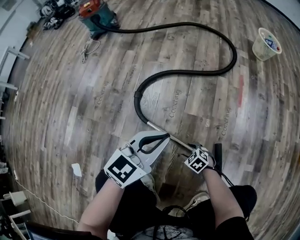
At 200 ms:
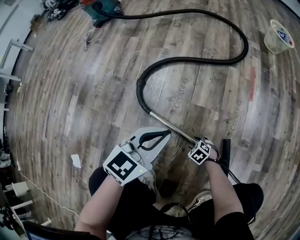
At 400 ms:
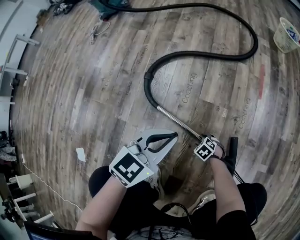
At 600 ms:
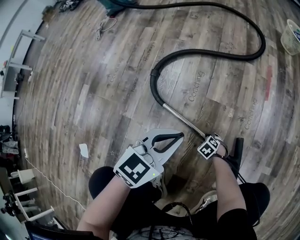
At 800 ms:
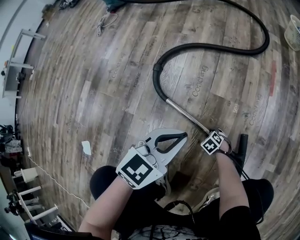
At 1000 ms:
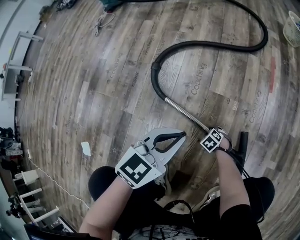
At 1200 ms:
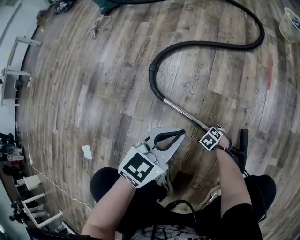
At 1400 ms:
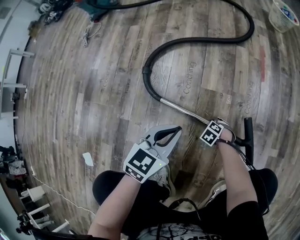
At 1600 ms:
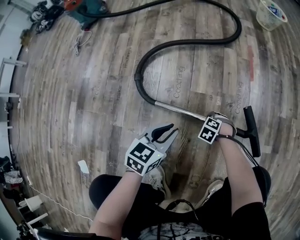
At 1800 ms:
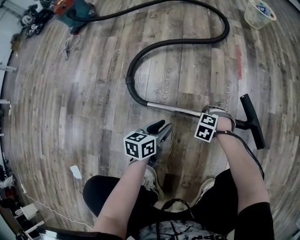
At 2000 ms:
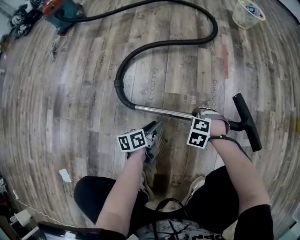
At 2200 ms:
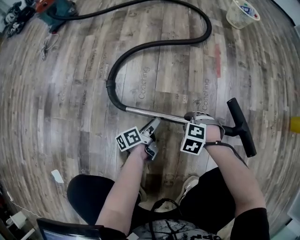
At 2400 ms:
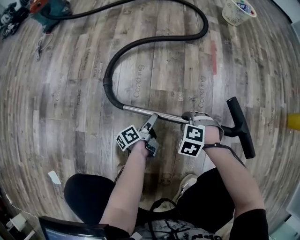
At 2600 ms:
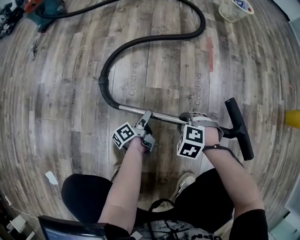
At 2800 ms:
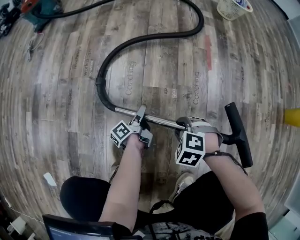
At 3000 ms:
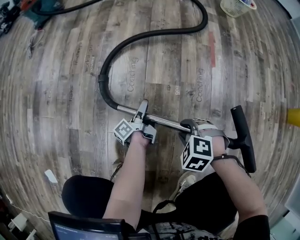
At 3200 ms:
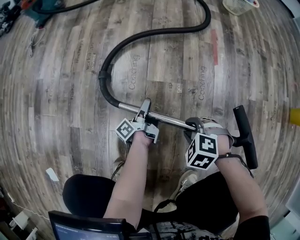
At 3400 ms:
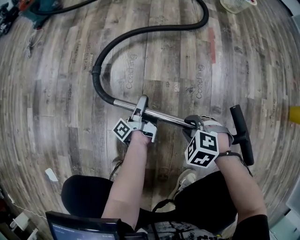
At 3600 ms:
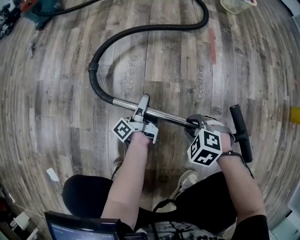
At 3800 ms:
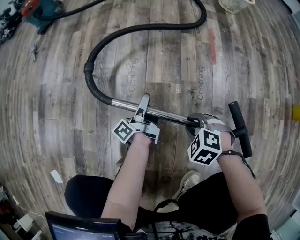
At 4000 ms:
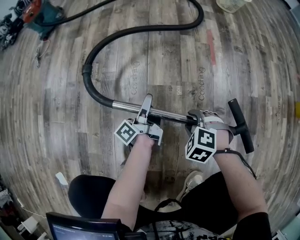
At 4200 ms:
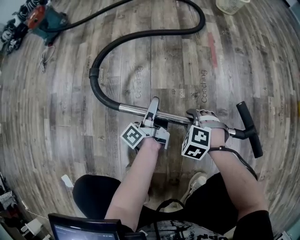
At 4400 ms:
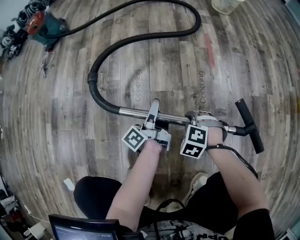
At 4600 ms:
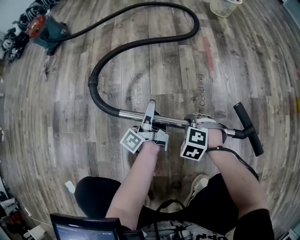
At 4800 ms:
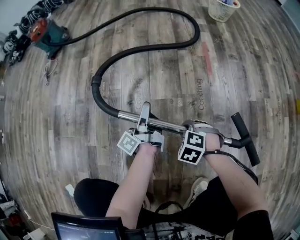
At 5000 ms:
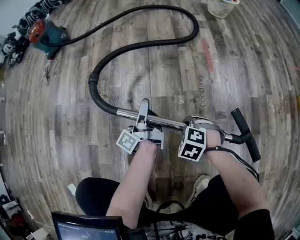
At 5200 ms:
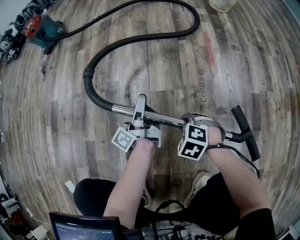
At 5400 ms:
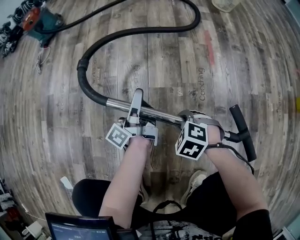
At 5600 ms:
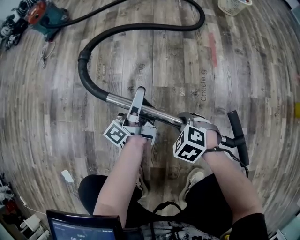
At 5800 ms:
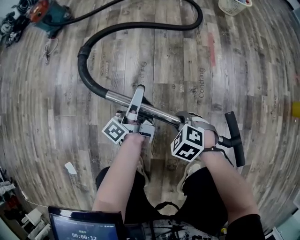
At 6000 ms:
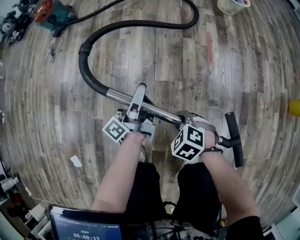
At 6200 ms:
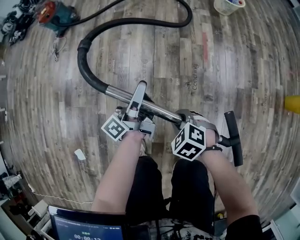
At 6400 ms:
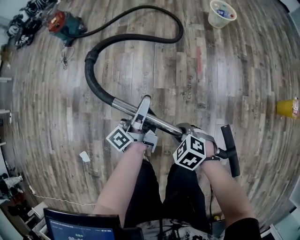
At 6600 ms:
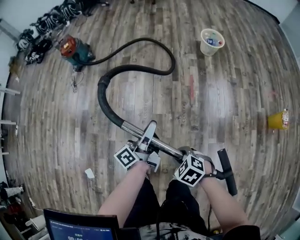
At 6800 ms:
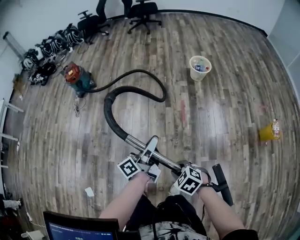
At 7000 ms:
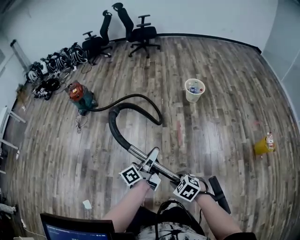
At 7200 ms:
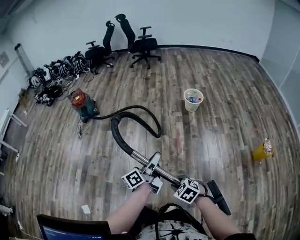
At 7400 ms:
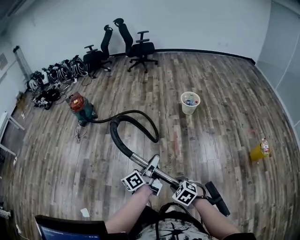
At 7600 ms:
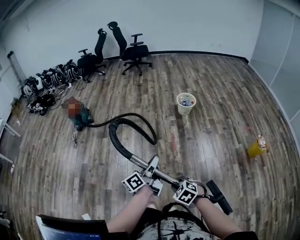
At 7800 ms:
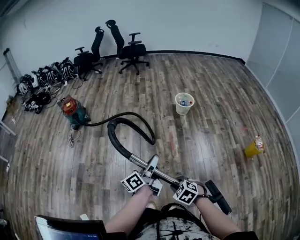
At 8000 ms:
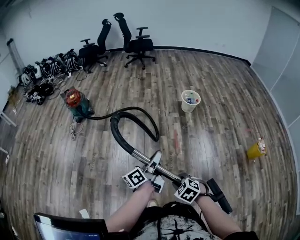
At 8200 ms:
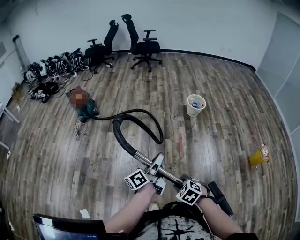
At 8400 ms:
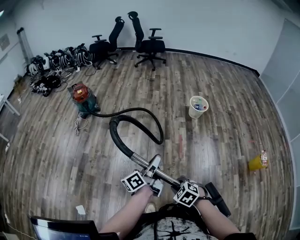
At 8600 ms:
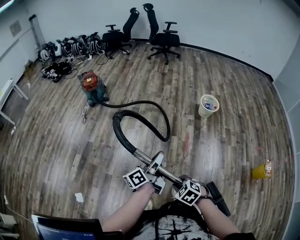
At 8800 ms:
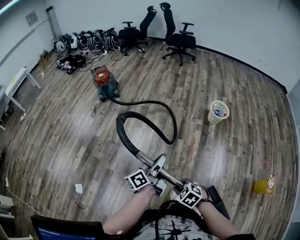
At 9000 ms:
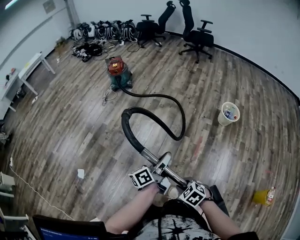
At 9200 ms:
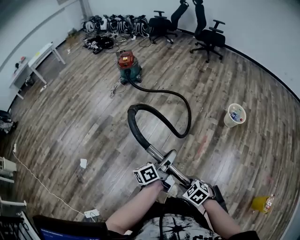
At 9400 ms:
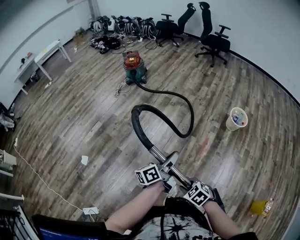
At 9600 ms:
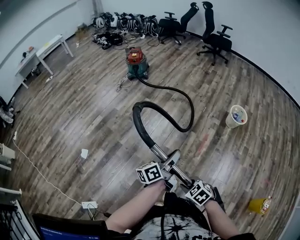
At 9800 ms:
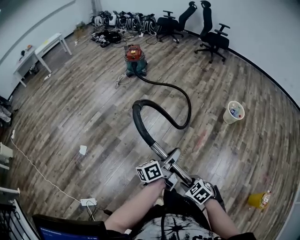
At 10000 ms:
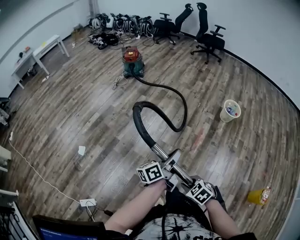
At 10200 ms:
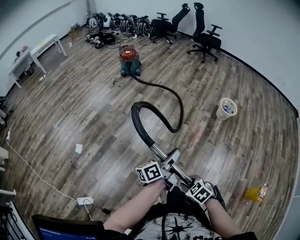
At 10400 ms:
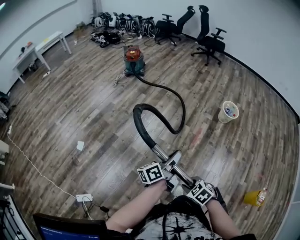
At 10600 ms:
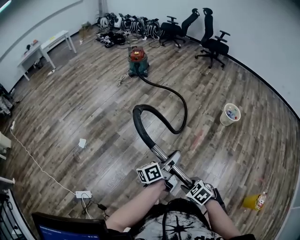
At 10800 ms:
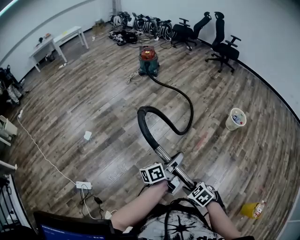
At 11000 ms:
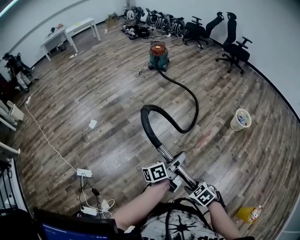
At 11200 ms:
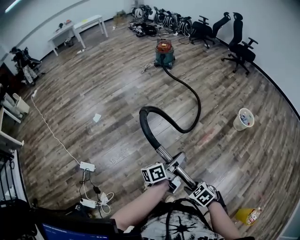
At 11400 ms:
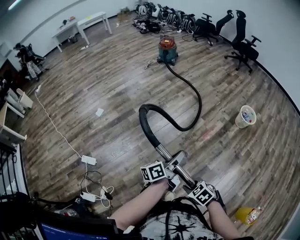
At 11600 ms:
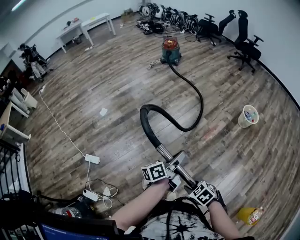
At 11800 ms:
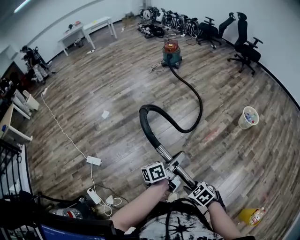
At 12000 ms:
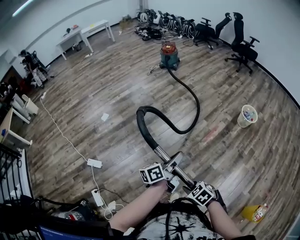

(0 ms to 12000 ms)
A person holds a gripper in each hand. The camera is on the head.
0 ms - 1600 ms: The right gripper heads downward, covering approximately 10 cm, swivels some 30 degrees, and closes its fingers, while the left gripper heads downward, covering roughly 20 cm, and rotates some 20 degrees.
1600 ms - 3000 ms: The left gripper moves downward, some 15 cm, rotates around the line of its fingers by approximately 80 degrees, counterclockwise from behind, and opens, while the right gripper travels upward by roughly 15 cm.
3000 ms - 4400 ms: The left gripper shifts approximately 15 cm upward, and closes.
4400 ms - 6000 ms: Both grippers move upward, some 20 cm.
6000 ms - 7600 ms: Both grippers travel together upward, approximately 40 cm. The left gripper turns by approximately 20 degrees.
7600 ms - 9000 ms: The left gripper shifts by approximately 10 cm, and rotates about 20 degrees, while the right gripper changes place by approximately 10 cm, and rotates roughly 20 degrees.
9000 ms - 10400 ms: The grippers both shift backward by roughly 20 cm.
10400 ms - 12000 ms: Both grippers travel together backward, roughly 25 cm.

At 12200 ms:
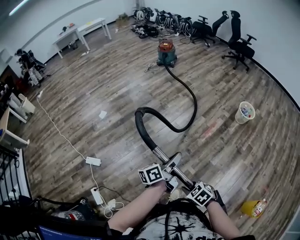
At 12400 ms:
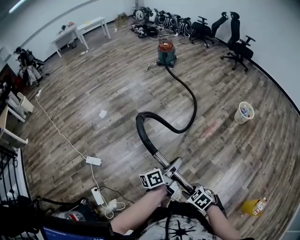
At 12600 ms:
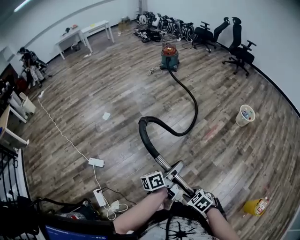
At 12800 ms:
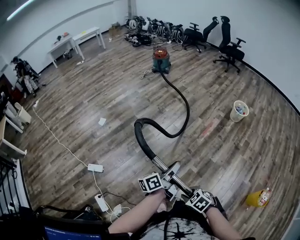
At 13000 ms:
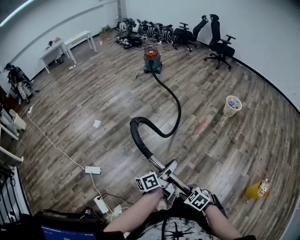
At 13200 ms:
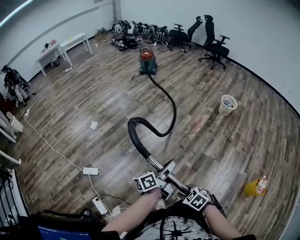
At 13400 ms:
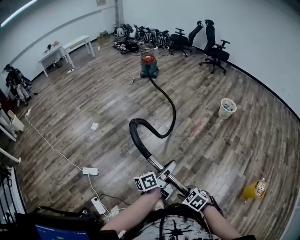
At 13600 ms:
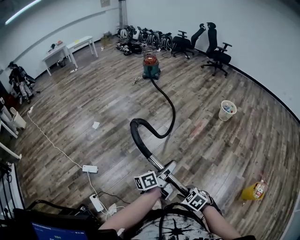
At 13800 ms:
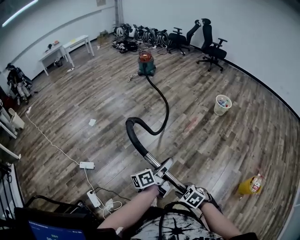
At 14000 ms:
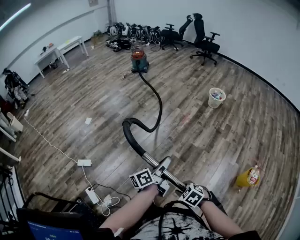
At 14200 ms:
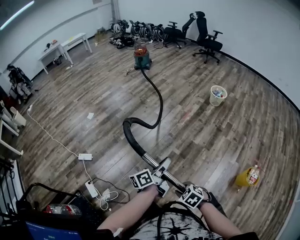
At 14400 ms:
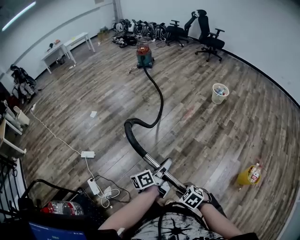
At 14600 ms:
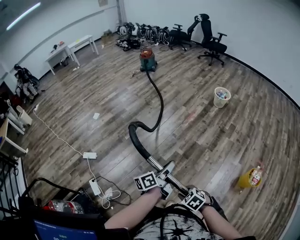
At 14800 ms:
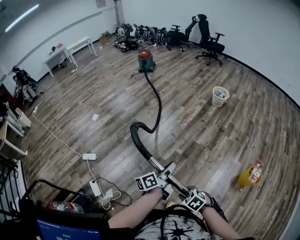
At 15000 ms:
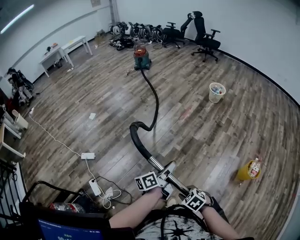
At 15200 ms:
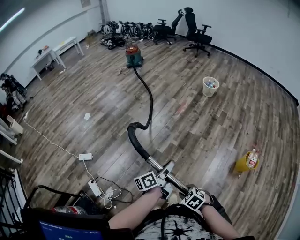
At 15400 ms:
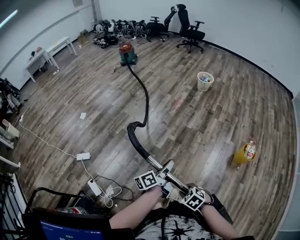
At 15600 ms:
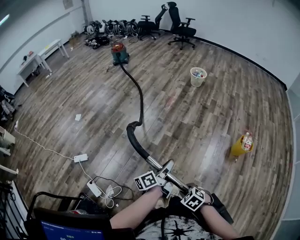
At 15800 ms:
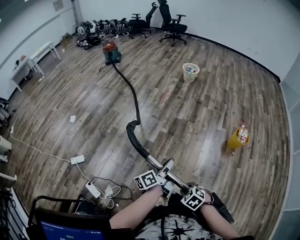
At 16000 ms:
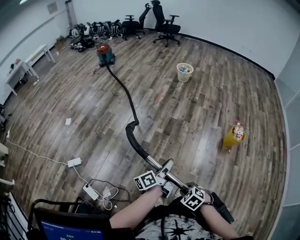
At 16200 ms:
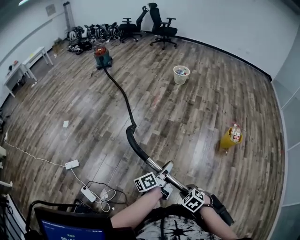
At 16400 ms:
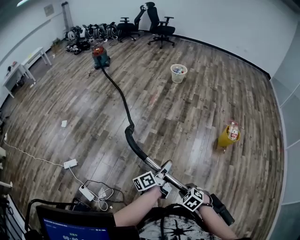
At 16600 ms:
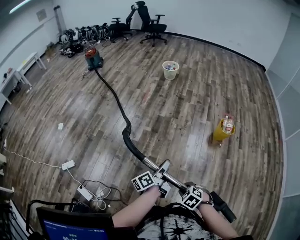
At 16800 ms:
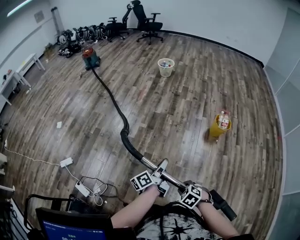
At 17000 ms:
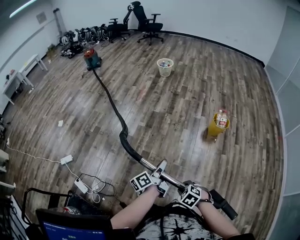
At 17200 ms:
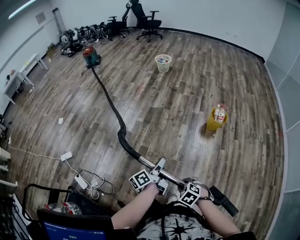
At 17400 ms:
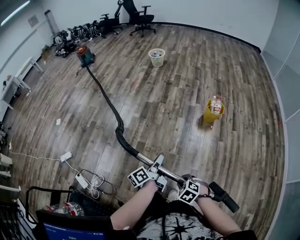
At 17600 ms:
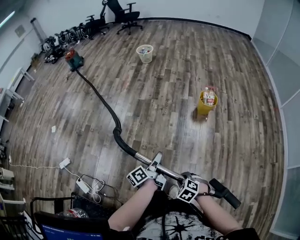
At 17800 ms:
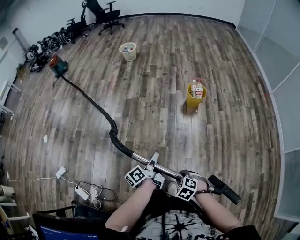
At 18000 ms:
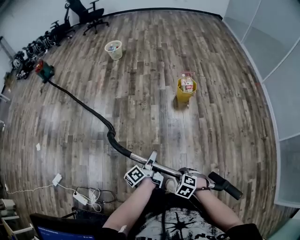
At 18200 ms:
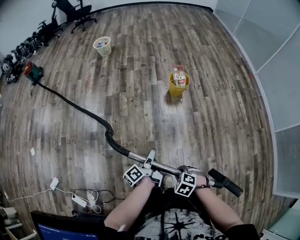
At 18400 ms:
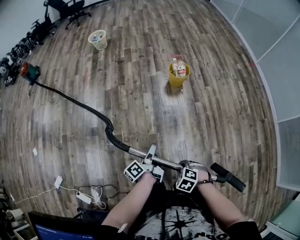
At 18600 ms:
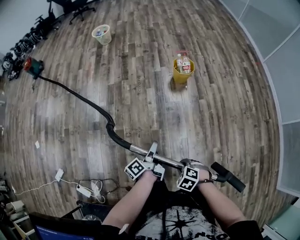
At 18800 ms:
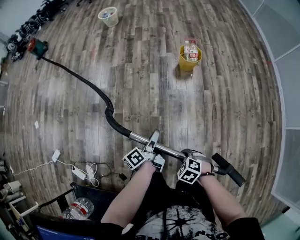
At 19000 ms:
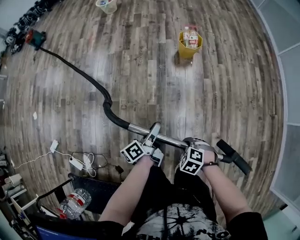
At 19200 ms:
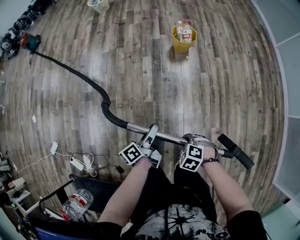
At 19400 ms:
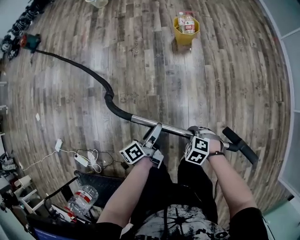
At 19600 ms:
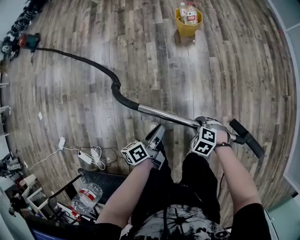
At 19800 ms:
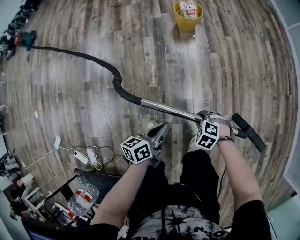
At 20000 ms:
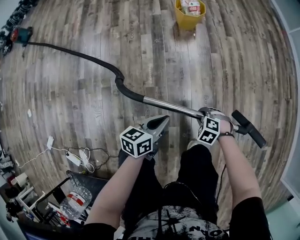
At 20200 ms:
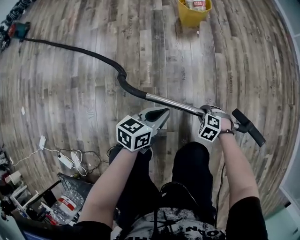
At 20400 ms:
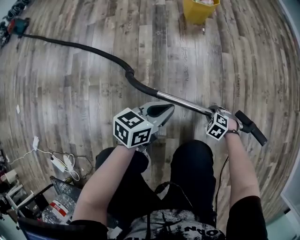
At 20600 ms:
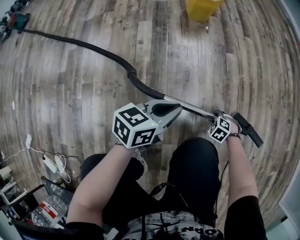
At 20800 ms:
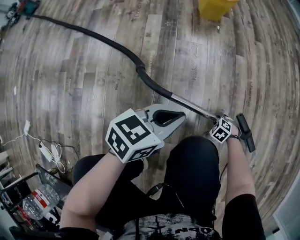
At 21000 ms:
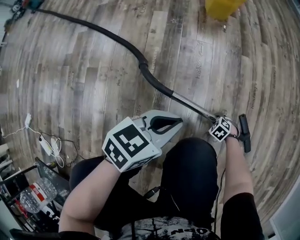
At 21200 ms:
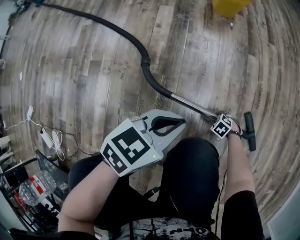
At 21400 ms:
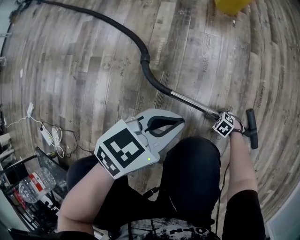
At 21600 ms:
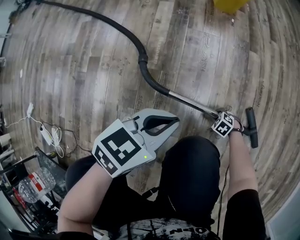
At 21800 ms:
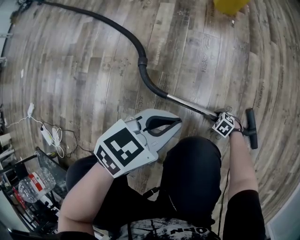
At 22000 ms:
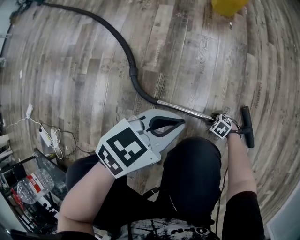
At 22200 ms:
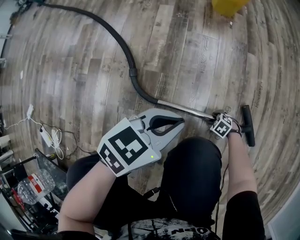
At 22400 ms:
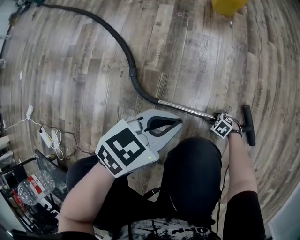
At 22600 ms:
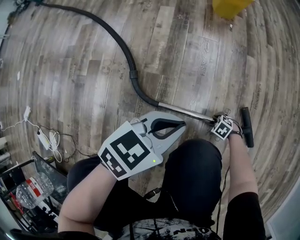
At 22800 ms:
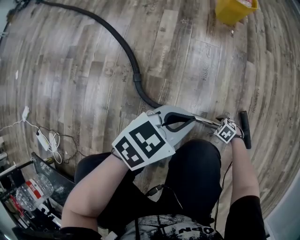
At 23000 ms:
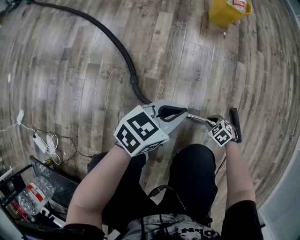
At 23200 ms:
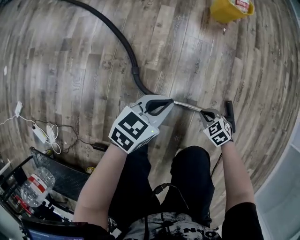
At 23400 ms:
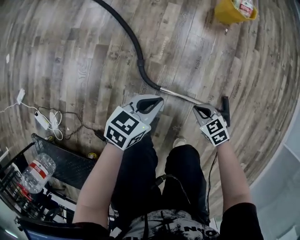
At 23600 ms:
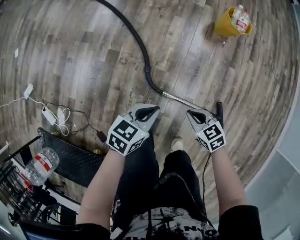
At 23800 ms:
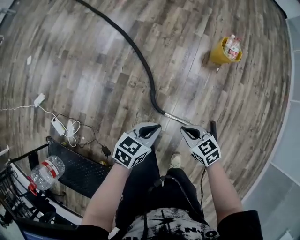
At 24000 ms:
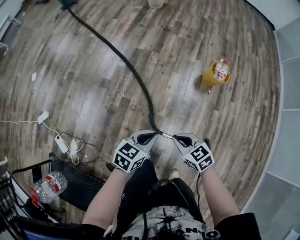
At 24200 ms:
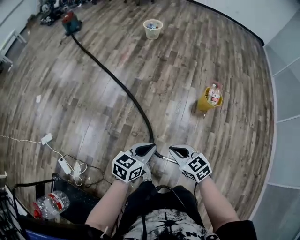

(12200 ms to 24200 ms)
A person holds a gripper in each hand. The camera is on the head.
12200 ms - 13800 ms: The two grippers go roughly 25 cm backward.
13800 ms - 15200 ms: Both grippers travel together backward, approximately 20 cm.
15200 ms - 16600 ms: Both grippers travel together backward and to the right, approximately 20 cm.
16600 ms - 18200 ms: The right gripper moves about 25 cm; the left gripper shifts by approximately 25 cm.
18200 ms - 19800 ms: The two grippers go about 20 cm downward. The left gripper changes its angle by about 40 degrees, and opens, then closes once more.
19800 ms - 21200 ms: The right gripper moves downward, some 50 cm. The left gripper travels downward by roughly 20 cm, and turns by roughly 40 degrees.
21200 ms - 22600 ms: The right gripper opens its fingers.
22600 ms - 24200 ms: The left gripper heads upward, covering roughly 50 cm, and swivels some 30 degrees; the right gripper moves upward, about 80 cm, tips its fingers upward by roughly 40 degrees, and closes.
